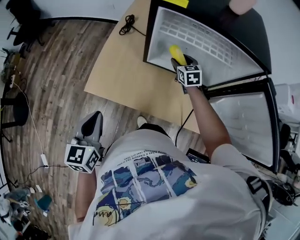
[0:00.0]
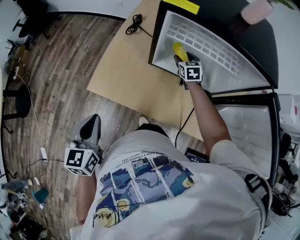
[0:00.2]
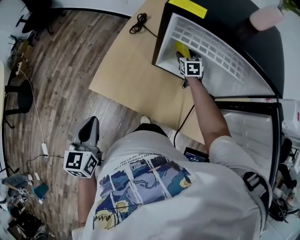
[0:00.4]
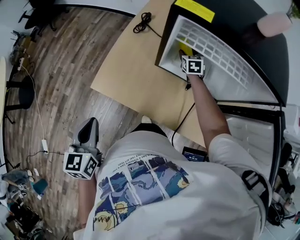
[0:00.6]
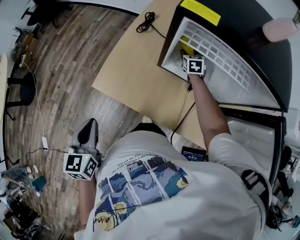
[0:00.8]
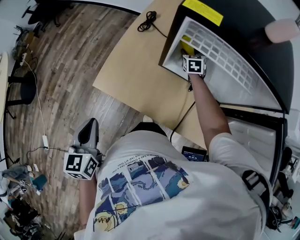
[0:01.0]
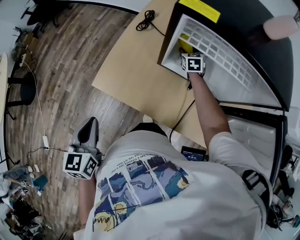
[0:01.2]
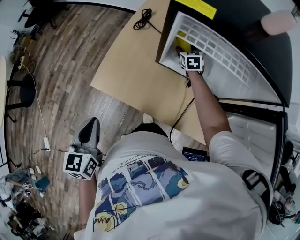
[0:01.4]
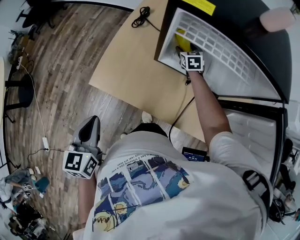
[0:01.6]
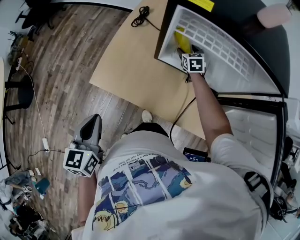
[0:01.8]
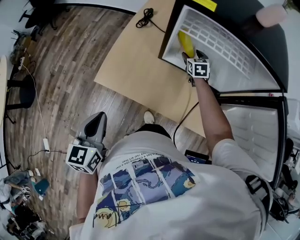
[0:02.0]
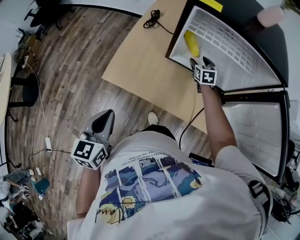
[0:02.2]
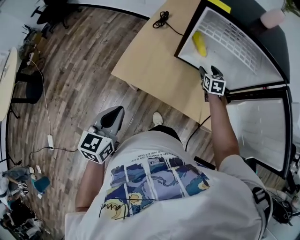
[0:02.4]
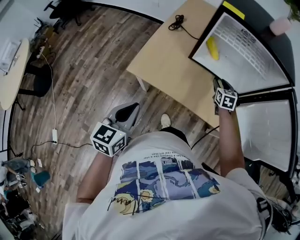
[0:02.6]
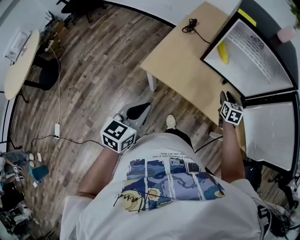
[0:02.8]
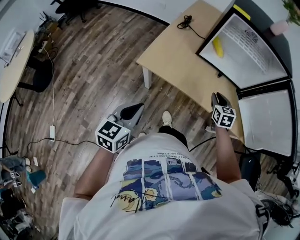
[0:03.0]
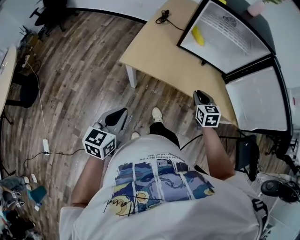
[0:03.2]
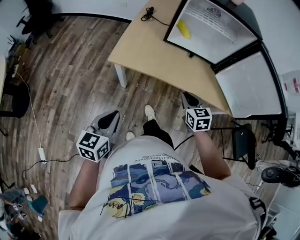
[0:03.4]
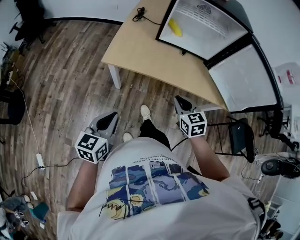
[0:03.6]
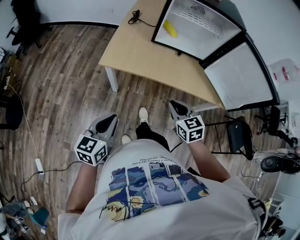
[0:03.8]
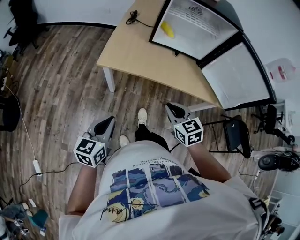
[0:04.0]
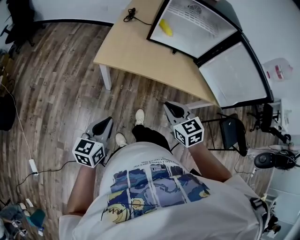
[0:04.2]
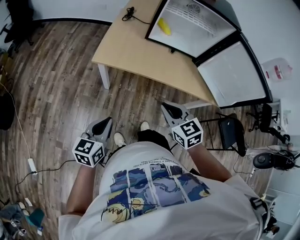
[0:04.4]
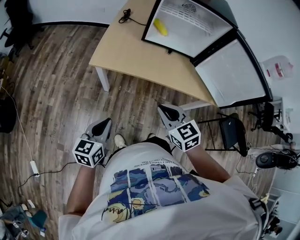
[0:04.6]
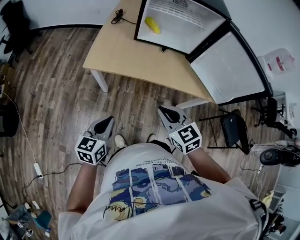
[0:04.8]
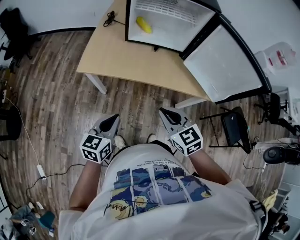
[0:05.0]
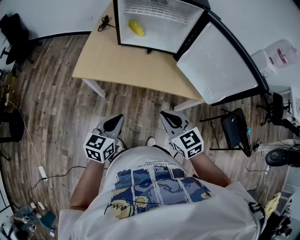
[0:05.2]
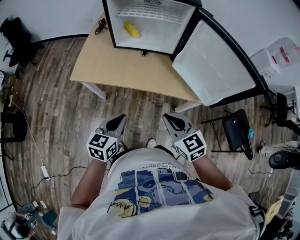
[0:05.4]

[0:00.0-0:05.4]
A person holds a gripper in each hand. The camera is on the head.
0:00.0 to 0:01.4: The right gripper is displaced forward and downward by roughly 15 cm.
0:01.4 to 0:02.8: The left gripper travels backward by roughly 10 cm, and rotates some 20 degrees. Meanwhile the right gripper travels backward by some 30 cm, and closes.
0:02.8 to 0:04.0: The left gripper moves backward, roughly 15 cm. The right gripper goes about 30 cm backward, and closes.
0:04.0 to 0:05.4: The grippers both shift to the right by about 25 cm.

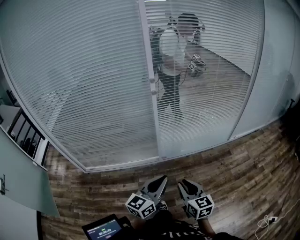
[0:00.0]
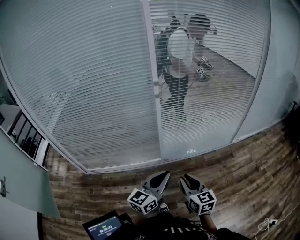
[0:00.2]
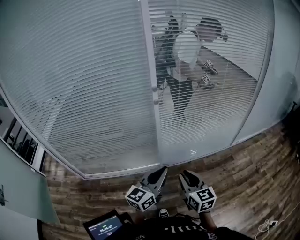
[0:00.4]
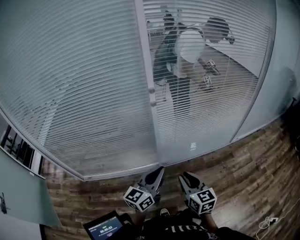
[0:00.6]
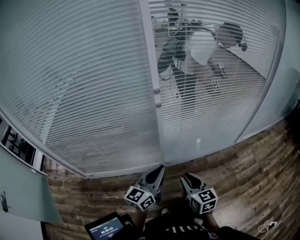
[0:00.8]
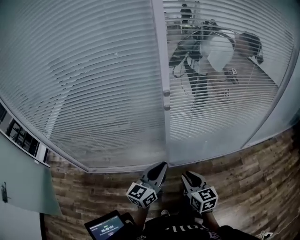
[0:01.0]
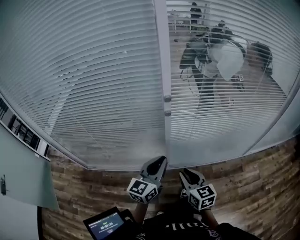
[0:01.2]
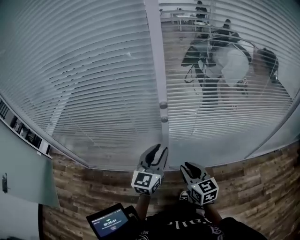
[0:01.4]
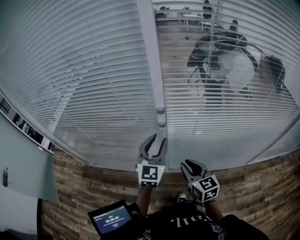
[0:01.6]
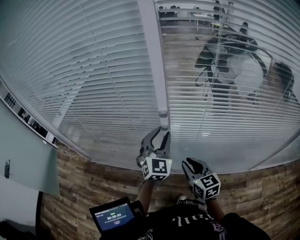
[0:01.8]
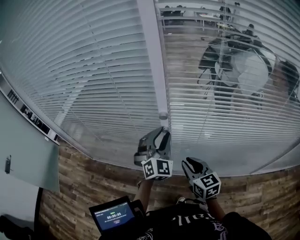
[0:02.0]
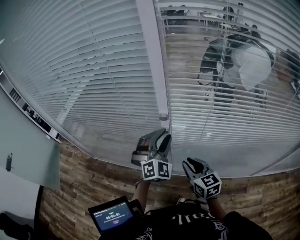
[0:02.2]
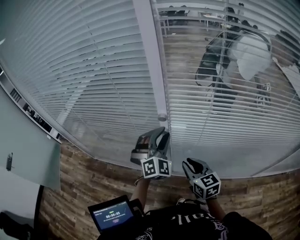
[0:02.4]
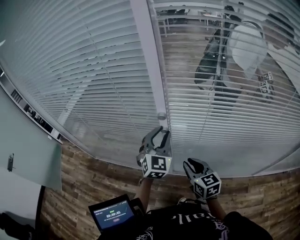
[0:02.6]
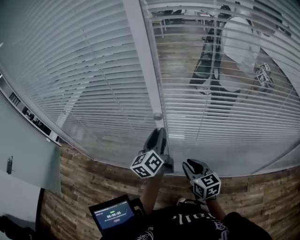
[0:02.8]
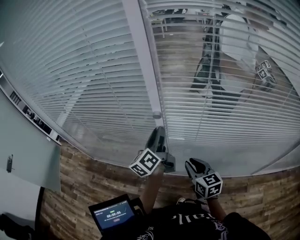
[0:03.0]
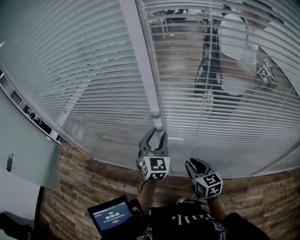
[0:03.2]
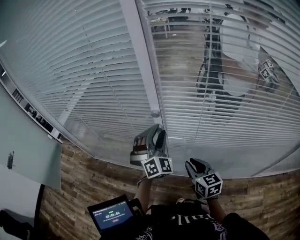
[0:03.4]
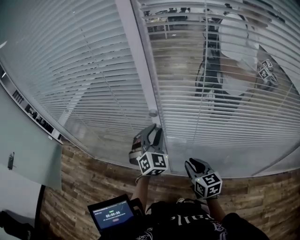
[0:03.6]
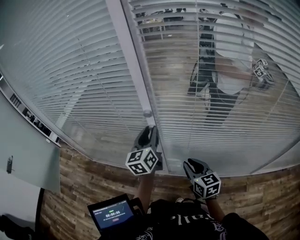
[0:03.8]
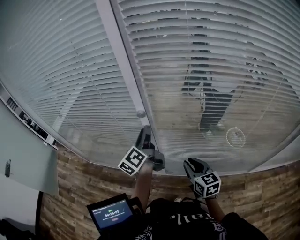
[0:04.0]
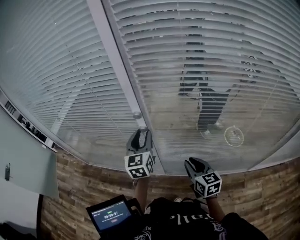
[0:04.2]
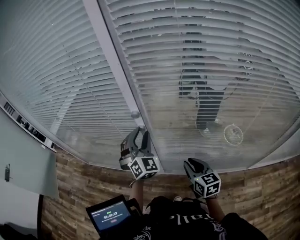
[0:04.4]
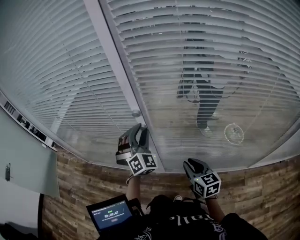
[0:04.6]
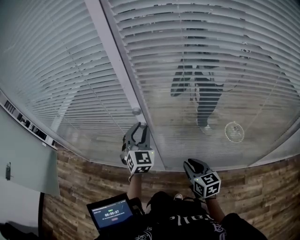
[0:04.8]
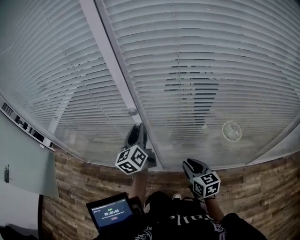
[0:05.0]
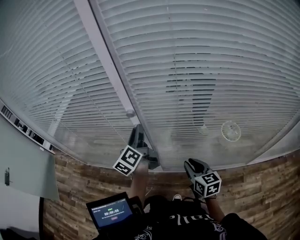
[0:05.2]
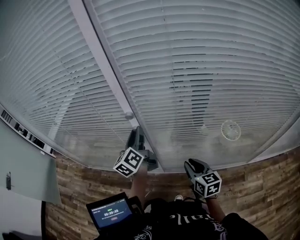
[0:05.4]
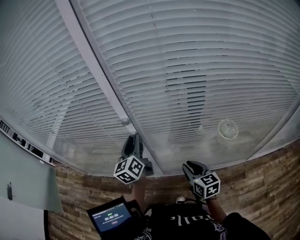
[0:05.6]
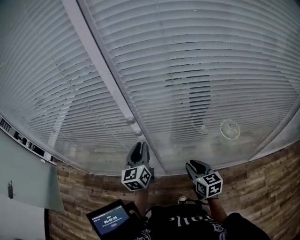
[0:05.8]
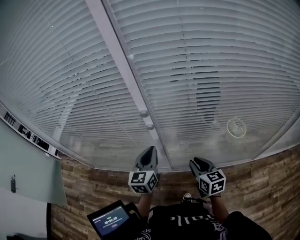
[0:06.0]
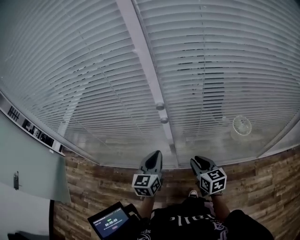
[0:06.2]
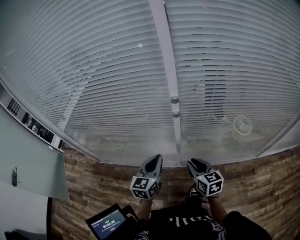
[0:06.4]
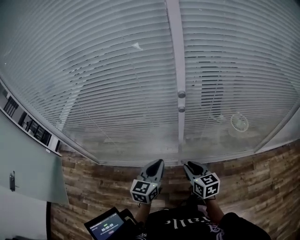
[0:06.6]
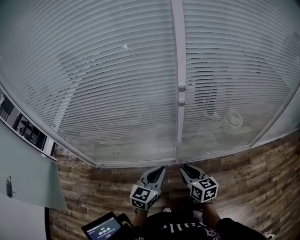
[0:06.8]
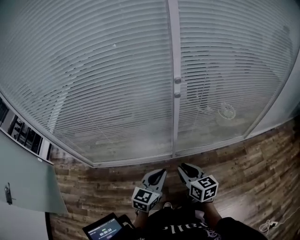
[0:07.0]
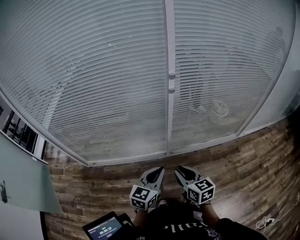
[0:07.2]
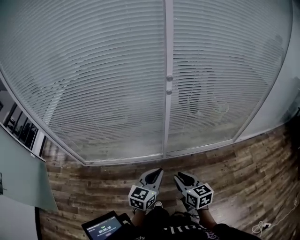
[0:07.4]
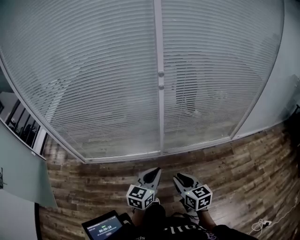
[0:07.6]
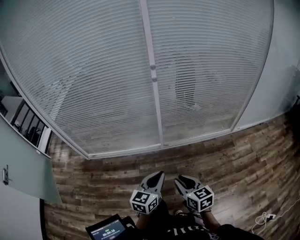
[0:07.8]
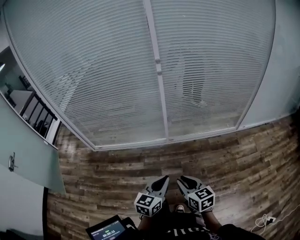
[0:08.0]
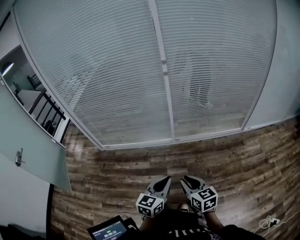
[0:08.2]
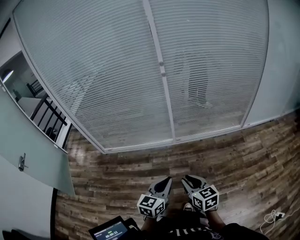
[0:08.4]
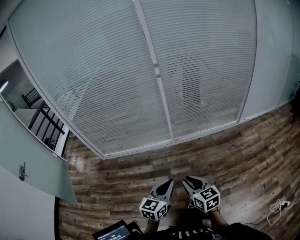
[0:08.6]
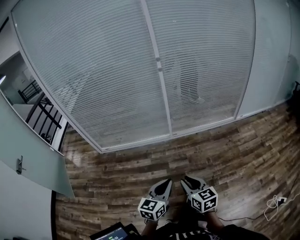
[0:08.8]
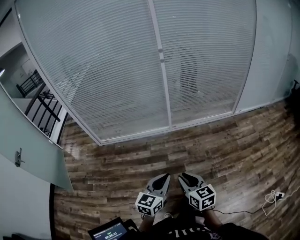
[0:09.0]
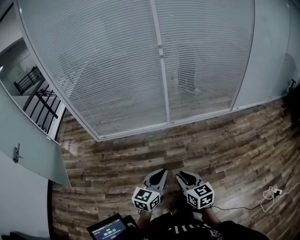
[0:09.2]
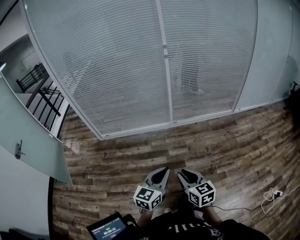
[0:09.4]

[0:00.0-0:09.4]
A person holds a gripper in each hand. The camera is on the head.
0:00.0 to 0:01.6: The pair of grippers is taken some 50 cm. The left gripper turns by some 50 degrees, and opens its fingers.
0:01.6 to 0:03.2: The left gripper ends up about 5 cm from where it was, and rotates about 20 degrees, while the right gripper moves to the right, approximately 5 cm.
0:03.2 to 0:04.8: The right gripper shifts by approximately 5 cm.
0:04.8 to 0:06.2: The left gripper heads backward, downward and to the left, covering some 15 cm, rotates some 40 degrees, and closes its fingers; the right gripper shifts about 5 cm to the left.
0:06.2 to 0:07.8: The pair of grippers is taken backward, roughly 50 cm. The left gripper rotates about 20 degrees.
0:07.8 to 0:09.4: Both grippers travel together backward, approximately 35 cm.

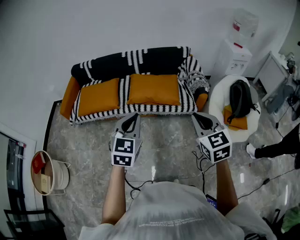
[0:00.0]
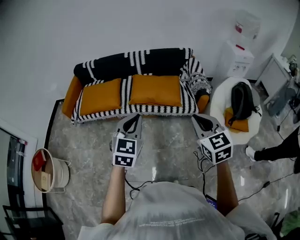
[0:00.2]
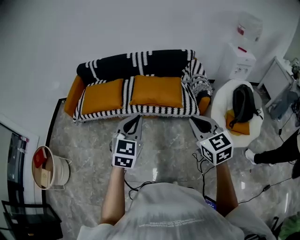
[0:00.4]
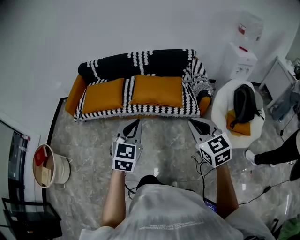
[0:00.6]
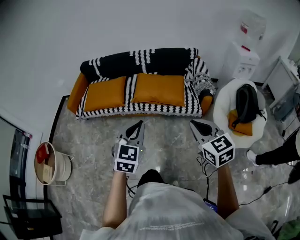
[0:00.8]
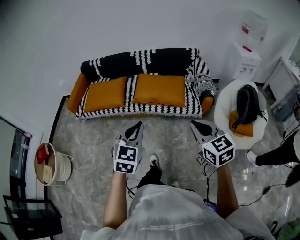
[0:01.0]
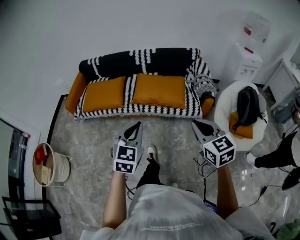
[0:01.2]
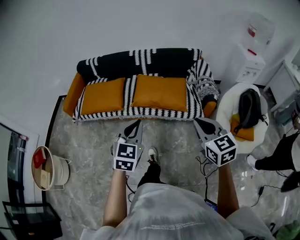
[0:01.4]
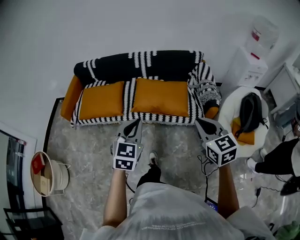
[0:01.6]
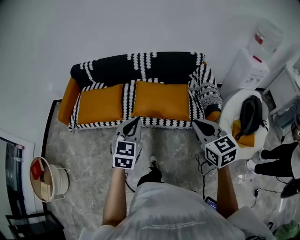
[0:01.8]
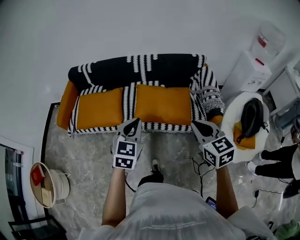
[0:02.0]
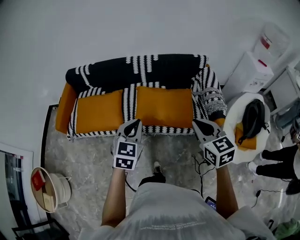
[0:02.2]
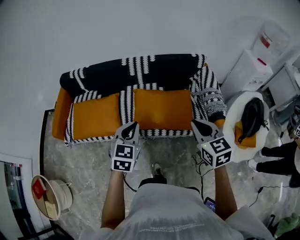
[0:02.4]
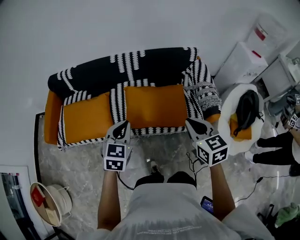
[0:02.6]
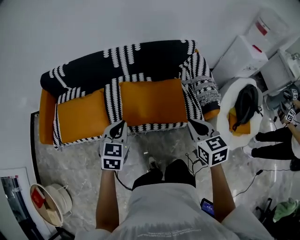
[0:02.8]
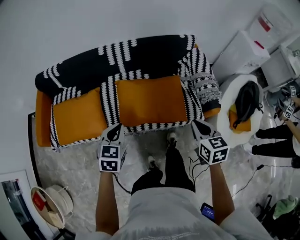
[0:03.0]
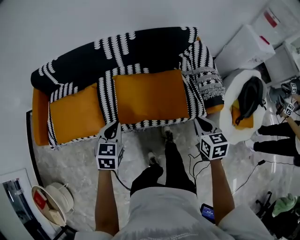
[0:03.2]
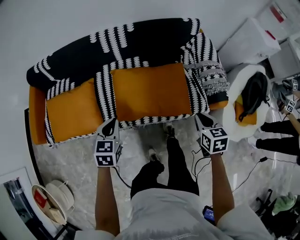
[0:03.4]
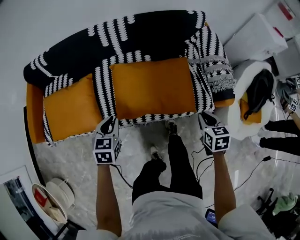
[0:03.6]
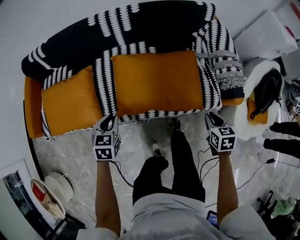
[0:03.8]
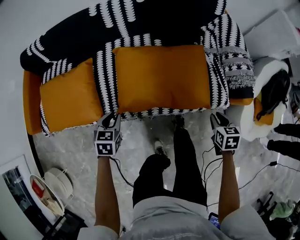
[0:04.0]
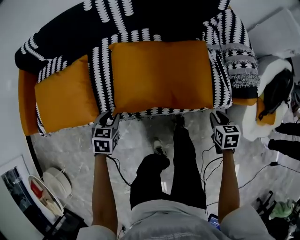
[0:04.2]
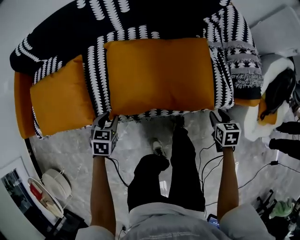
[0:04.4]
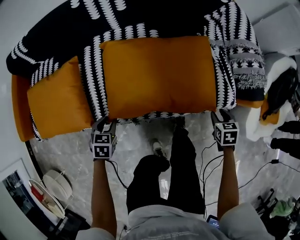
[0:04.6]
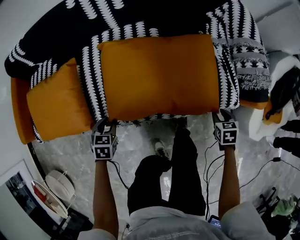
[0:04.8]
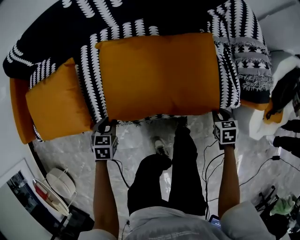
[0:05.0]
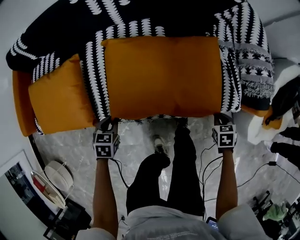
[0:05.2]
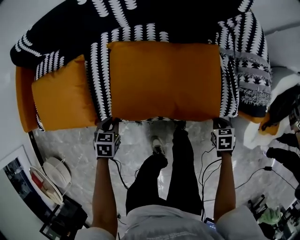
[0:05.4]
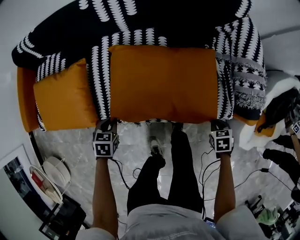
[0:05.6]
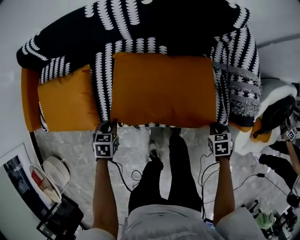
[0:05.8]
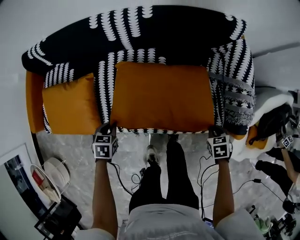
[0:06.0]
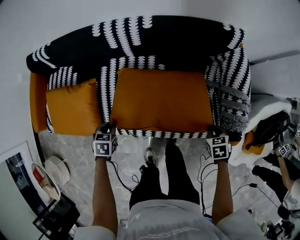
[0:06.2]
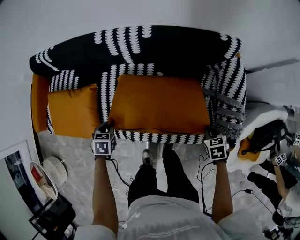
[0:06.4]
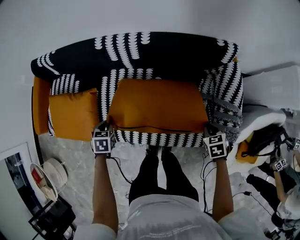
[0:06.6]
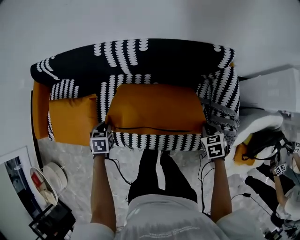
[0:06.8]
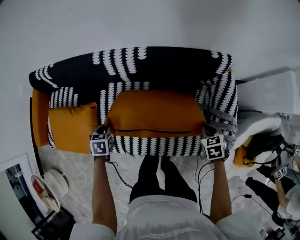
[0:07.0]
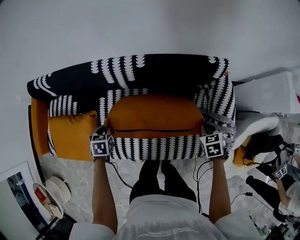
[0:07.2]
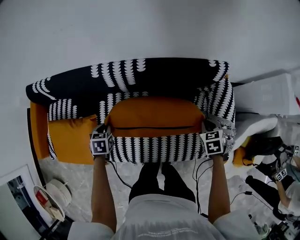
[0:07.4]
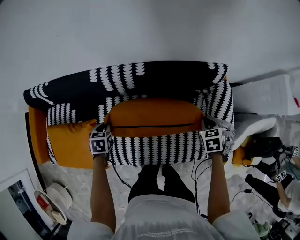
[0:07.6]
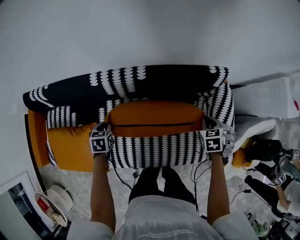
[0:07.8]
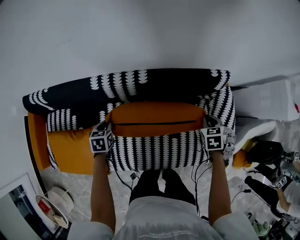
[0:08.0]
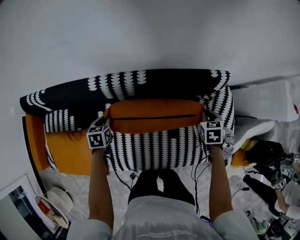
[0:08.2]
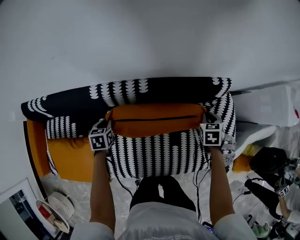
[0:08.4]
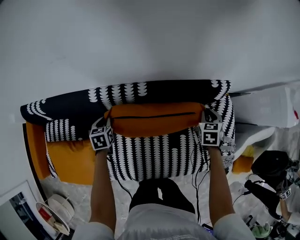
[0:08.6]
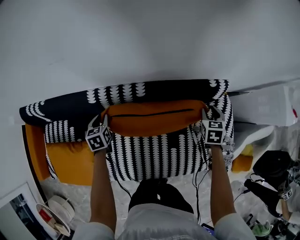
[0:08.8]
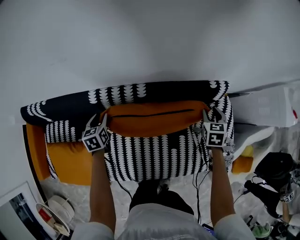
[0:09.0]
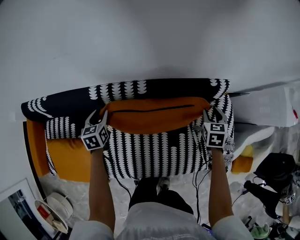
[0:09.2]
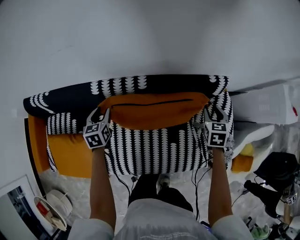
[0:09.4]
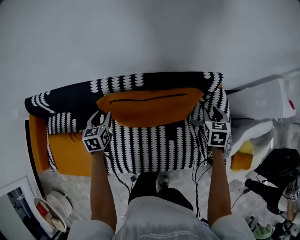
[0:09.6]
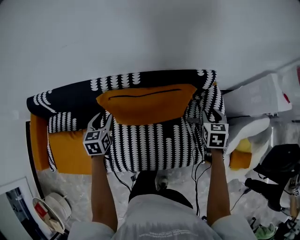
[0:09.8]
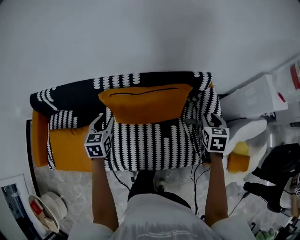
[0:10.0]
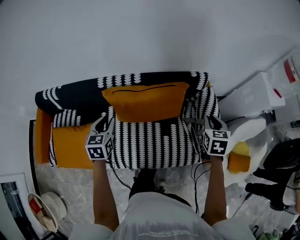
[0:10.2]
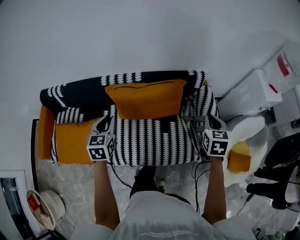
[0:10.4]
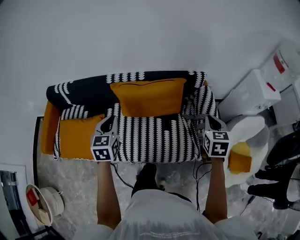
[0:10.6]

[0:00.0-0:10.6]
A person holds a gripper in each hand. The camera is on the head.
0:00.0 to 0:01.6: The two grippers go about 15 cm forward.
0:01.6 to 0:03.0: The two grippers go some 30 cm forward and downward. The right gripper rotates about 30 degrees.
0:03.0 to 0:04.6: Both grippers travel together downward, some 40 cm. The right gripper rotates some 30 degrees, and opens up. The left gripper swivels approximately 30 degrees, and opens up.
0:04.6 to 0:06.0: Both grippers travel together upward, about 10 cm. The right gripper closes its fingers. The left gripper closes its fingers.
0:06.0 to 0:07.6: The left gripper shifts by about 25 cm; the right gripper ends up approximately 30 cm from where it was.
0:07.6 to 0:09.0: Both grippers travel together forward, approximately 15 cm. The left gripper turns by about 20 degrees, and opens its fingers. Meanwhile the right gripper opens.
0:09.0 to 0:10.6: The left gripper moves backward, upward and to the right, approximately 40 cm, rotates some 30 degrees, and closes up. Meanwhile the right gripper goes approximately 40 cm backward and upward, and closes.
